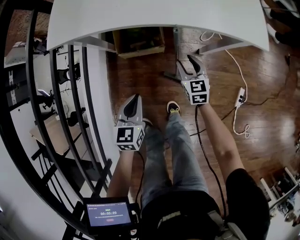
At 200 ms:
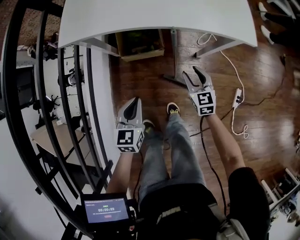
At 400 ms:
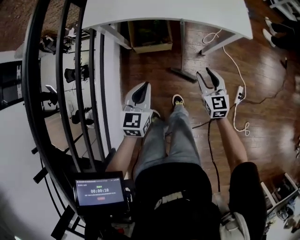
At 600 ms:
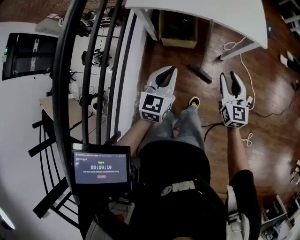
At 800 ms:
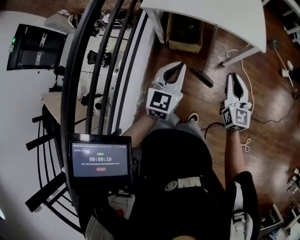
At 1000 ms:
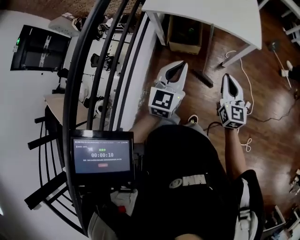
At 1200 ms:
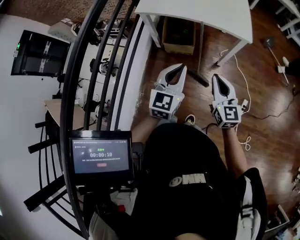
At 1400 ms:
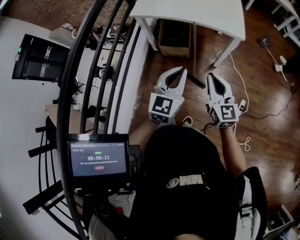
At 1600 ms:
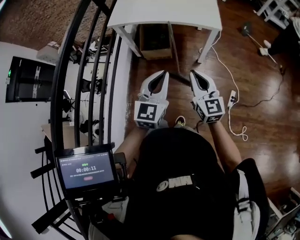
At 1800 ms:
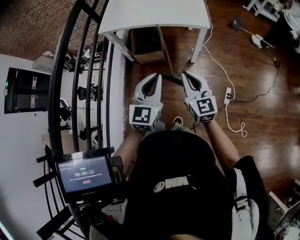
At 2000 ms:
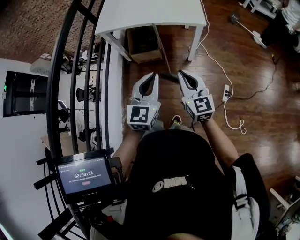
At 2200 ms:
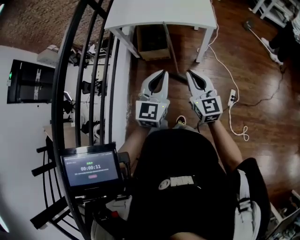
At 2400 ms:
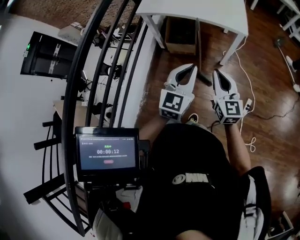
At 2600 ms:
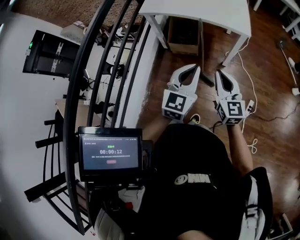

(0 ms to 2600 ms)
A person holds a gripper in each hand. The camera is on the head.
0 ms - 1200 ms: The right gripper is displaced upward and backward by about 25 cm, changes its angle by about 30 degrees, and closes up; the left gripper is displaced upward and to the right by some 20 cm, and turns by roughly 30 degrees.
1200 ms - 2600 ms: The left gripper shifts roughly 5 cm to the right.

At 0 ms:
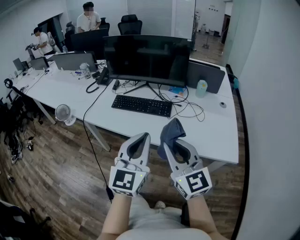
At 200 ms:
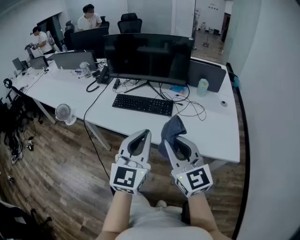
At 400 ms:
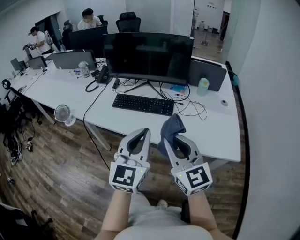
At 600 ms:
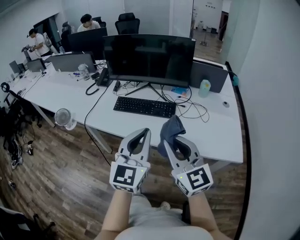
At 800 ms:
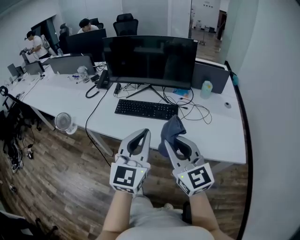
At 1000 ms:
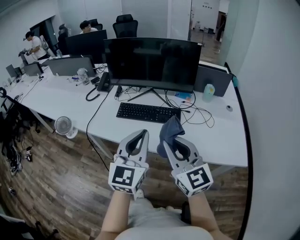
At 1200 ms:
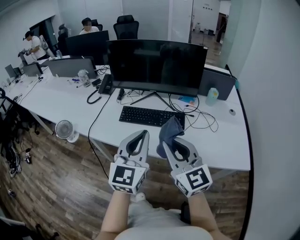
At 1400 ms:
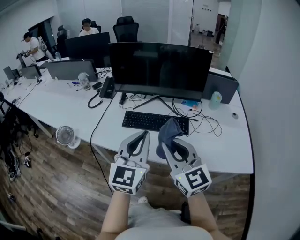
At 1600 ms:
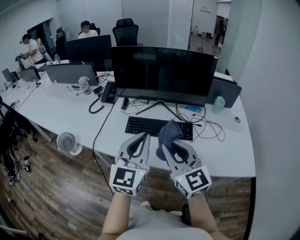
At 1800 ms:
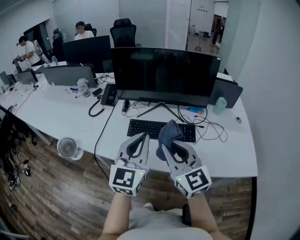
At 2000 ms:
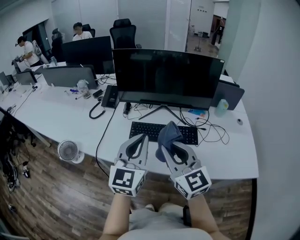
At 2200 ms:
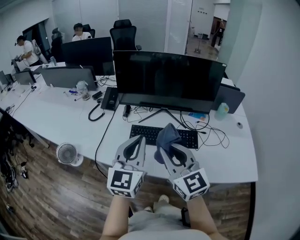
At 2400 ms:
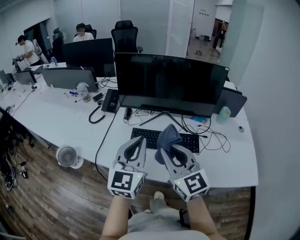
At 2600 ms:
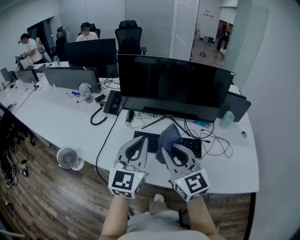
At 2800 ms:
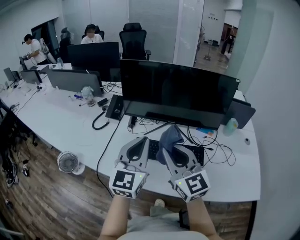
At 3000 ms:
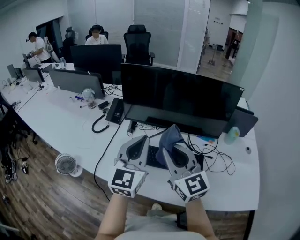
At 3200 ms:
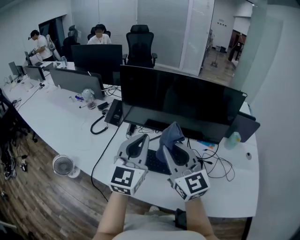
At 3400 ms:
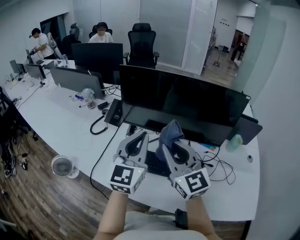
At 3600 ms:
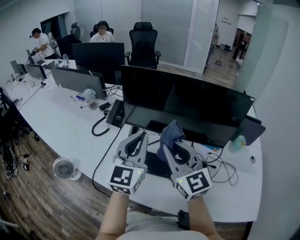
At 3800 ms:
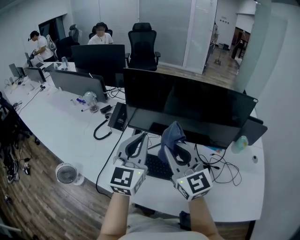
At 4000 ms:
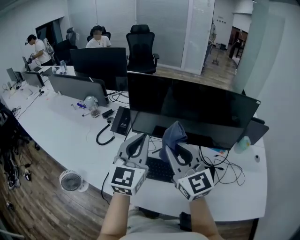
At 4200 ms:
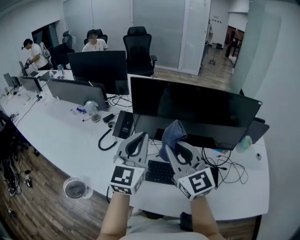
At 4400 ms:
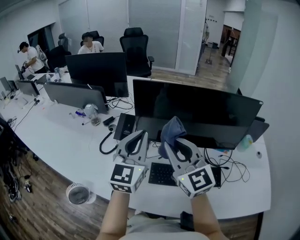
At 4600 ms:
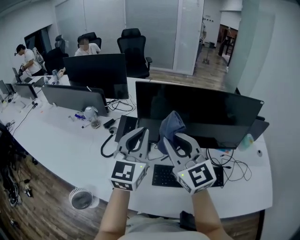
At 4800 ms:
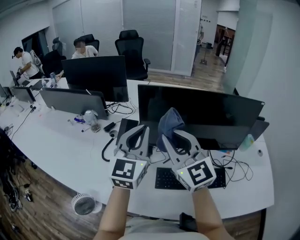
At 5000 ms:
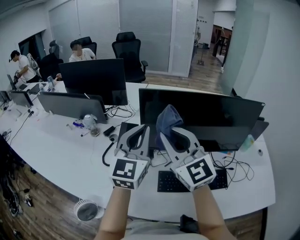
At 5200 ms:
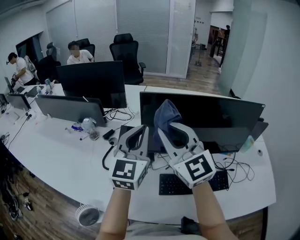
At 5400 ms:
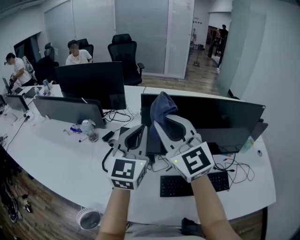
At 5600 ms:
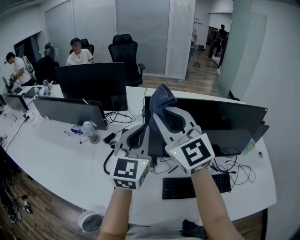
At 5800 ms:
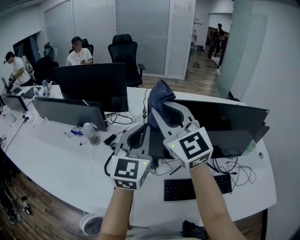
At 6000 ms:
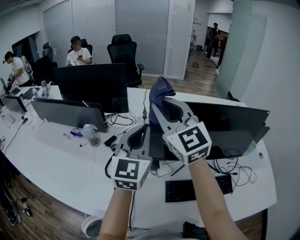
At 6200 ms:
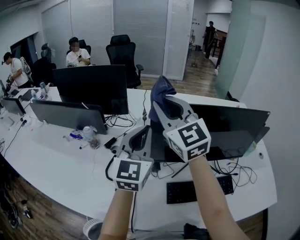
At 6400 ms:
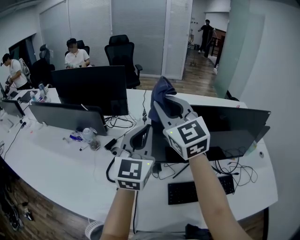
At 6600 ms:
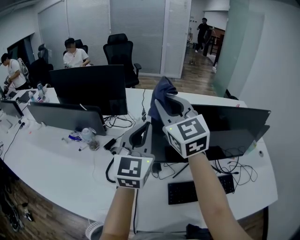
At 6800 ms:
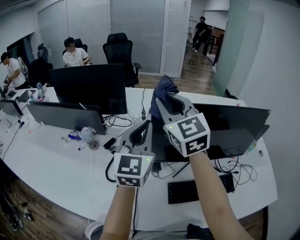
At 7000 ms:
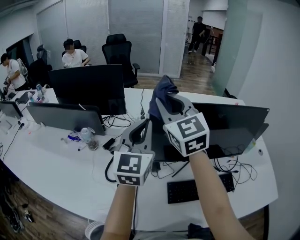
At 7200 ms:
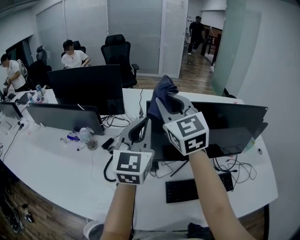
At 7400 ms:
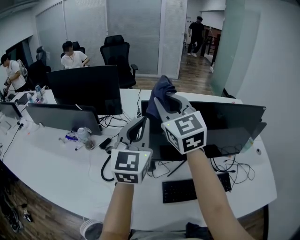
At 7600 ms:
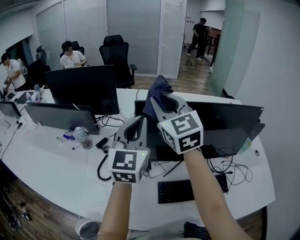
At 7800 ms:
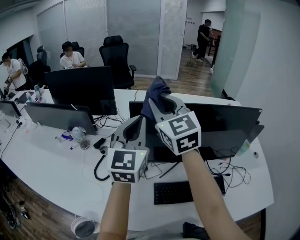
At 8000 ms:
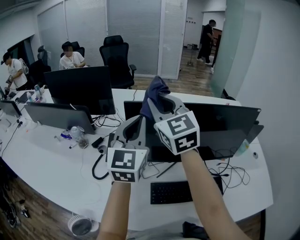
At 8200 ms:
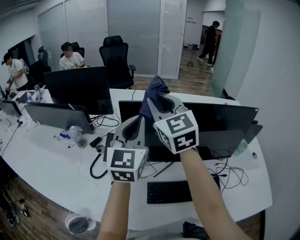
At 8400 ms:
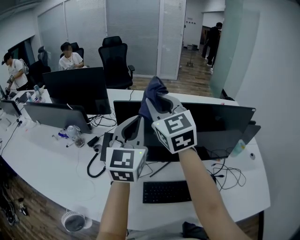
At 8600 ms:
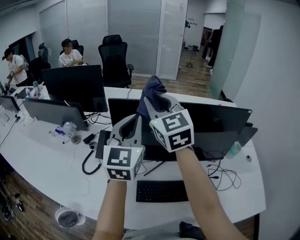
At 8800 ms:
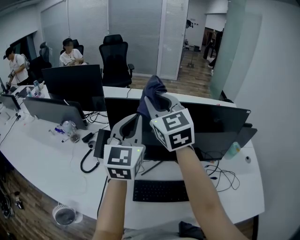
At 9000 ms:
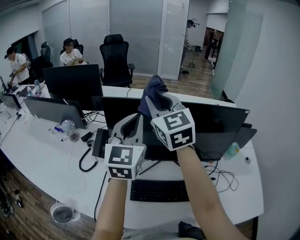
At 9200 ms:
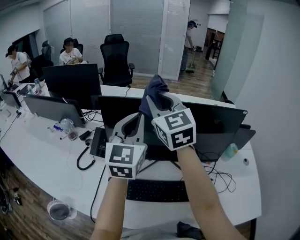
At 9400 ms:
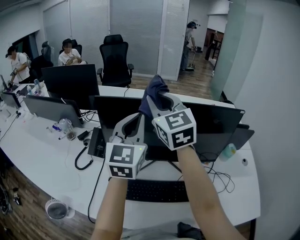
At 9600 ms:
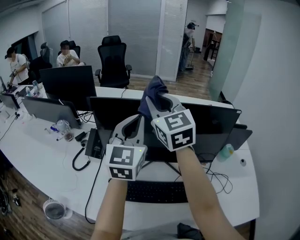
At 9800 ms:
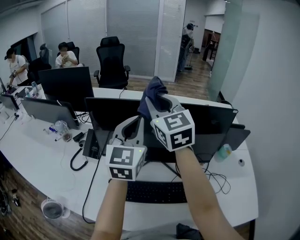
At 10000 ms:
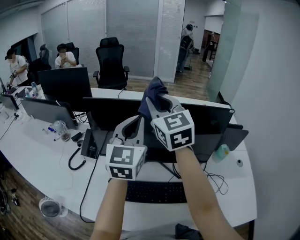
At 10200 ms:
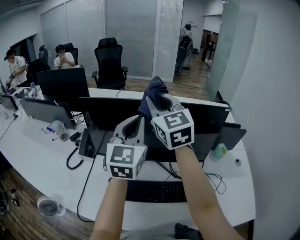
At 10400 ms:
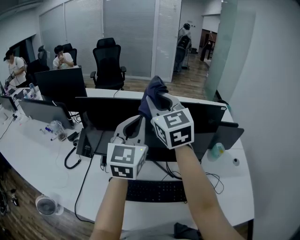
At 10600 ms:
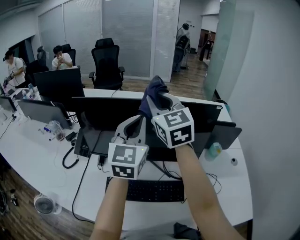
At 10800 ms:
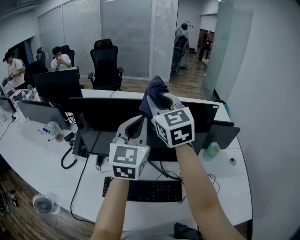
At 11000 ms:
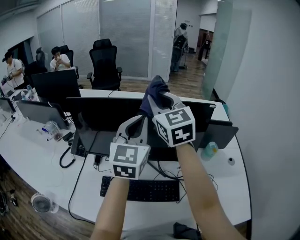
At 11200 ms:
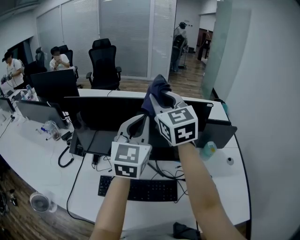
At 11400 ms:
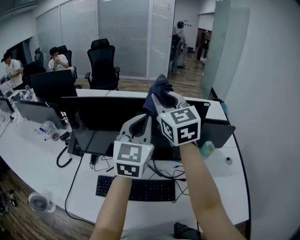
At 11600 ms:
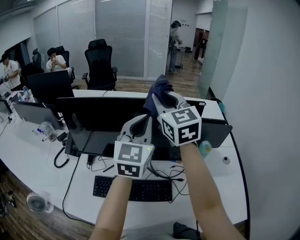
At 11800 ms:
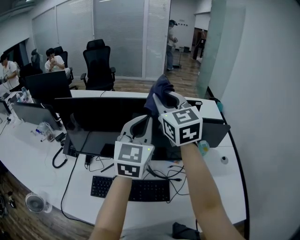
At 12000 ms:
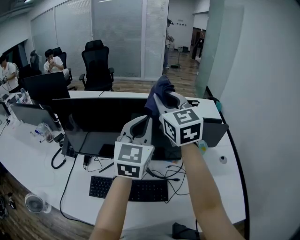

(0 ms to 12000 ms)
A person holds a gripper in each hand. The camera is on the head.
0 ms - 1600 ms: The two grippers go approximately 25 cm forward and to the left.
1600 ms - 3000 ms: The two grippers go some 15 cm forward.
3000 ms - 4400 ms: The grippers both shift forward and to the left by approximately 15 cm.
4400 ms - 6000 ms: The right gripper is displaced forward, to the left and upward by approximately 25 cm, while the left gripper shifts some 15 cm forward and to the left.
6000 ms - 7600 ms: The right gripper moves to the right, some 5 cm.
7600 ms - 9000 ms: Both grippers move to the right, approximately 10 cm.
9000 ms - 10400 ms: Both grippers move to the right, about 15 cm.
10400 ms - 12000 ms: Both grippers move to the right, about 15 cm.

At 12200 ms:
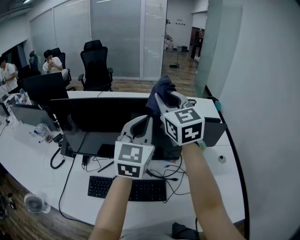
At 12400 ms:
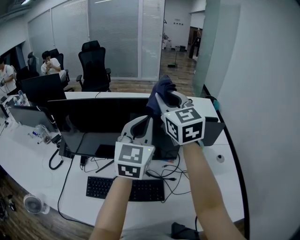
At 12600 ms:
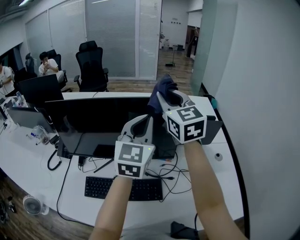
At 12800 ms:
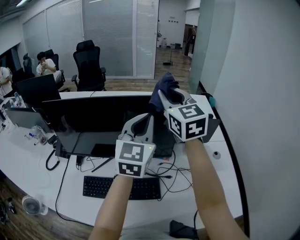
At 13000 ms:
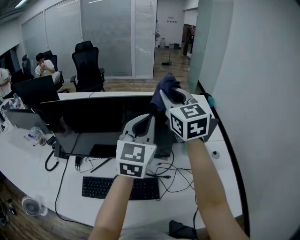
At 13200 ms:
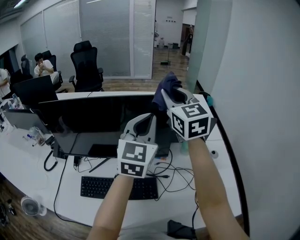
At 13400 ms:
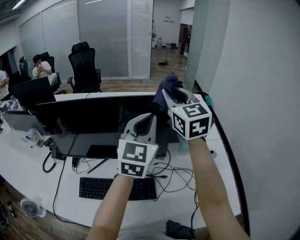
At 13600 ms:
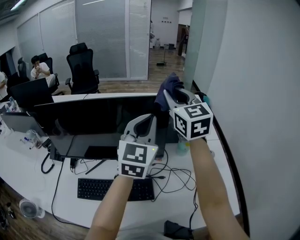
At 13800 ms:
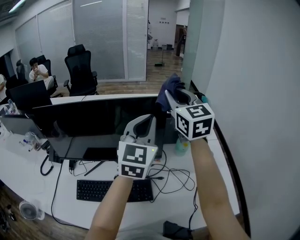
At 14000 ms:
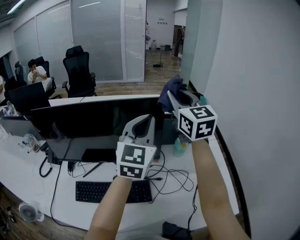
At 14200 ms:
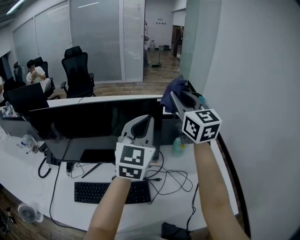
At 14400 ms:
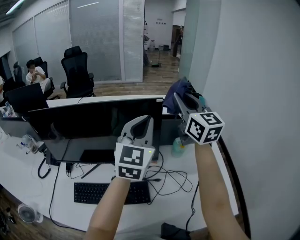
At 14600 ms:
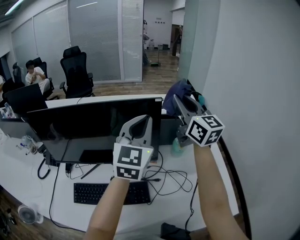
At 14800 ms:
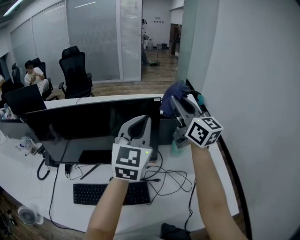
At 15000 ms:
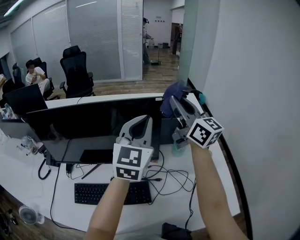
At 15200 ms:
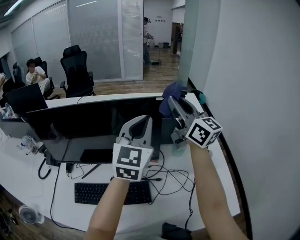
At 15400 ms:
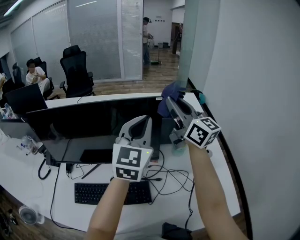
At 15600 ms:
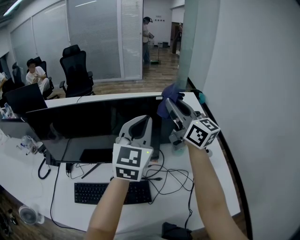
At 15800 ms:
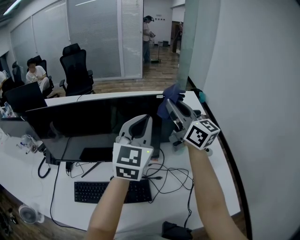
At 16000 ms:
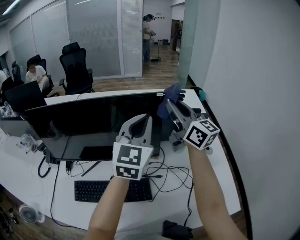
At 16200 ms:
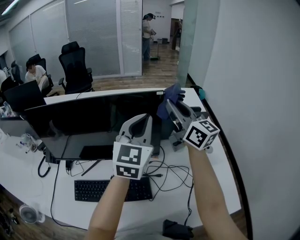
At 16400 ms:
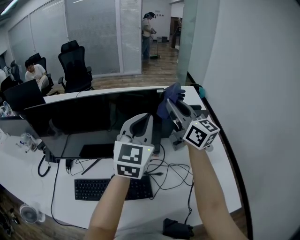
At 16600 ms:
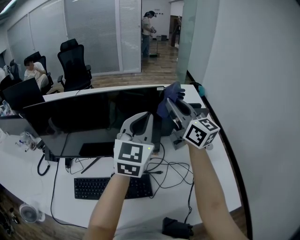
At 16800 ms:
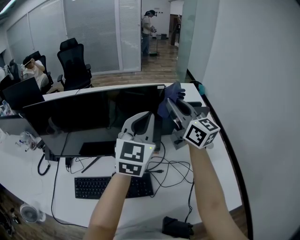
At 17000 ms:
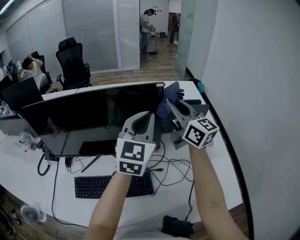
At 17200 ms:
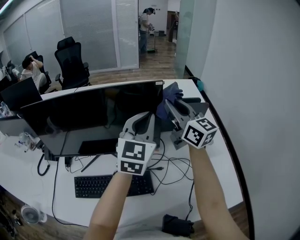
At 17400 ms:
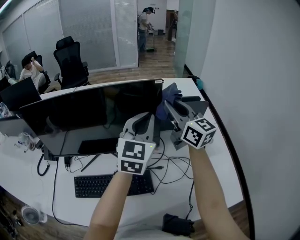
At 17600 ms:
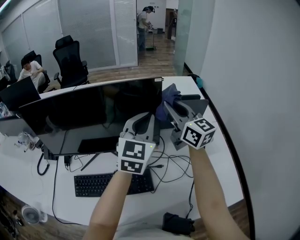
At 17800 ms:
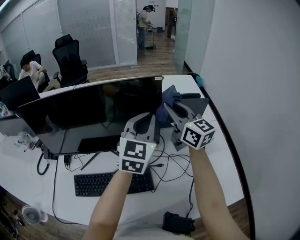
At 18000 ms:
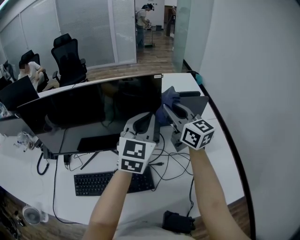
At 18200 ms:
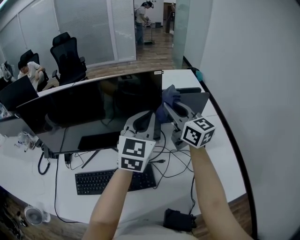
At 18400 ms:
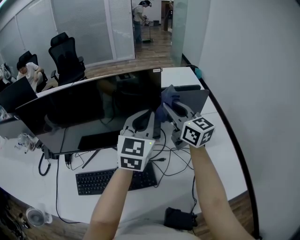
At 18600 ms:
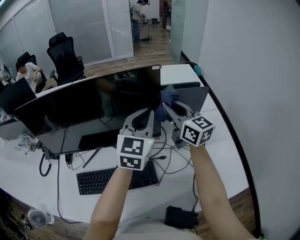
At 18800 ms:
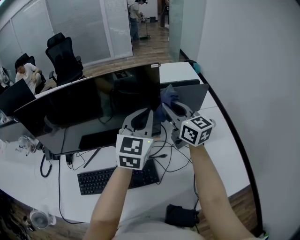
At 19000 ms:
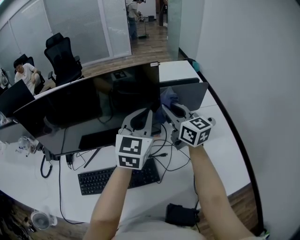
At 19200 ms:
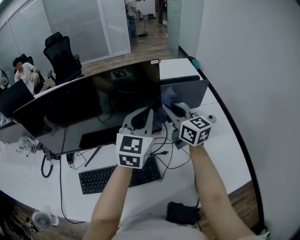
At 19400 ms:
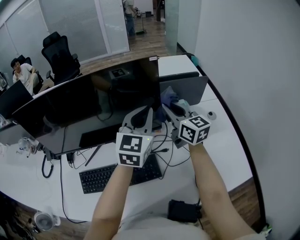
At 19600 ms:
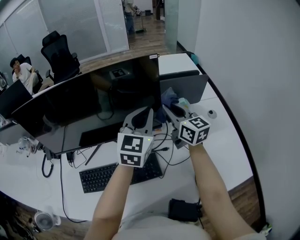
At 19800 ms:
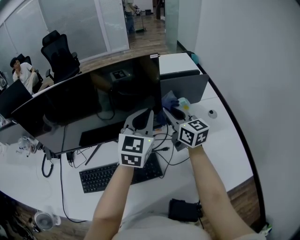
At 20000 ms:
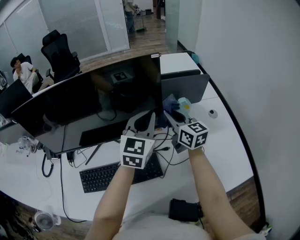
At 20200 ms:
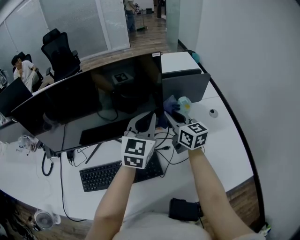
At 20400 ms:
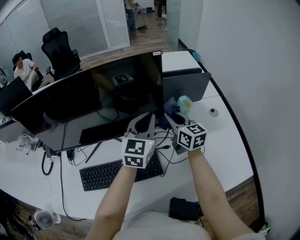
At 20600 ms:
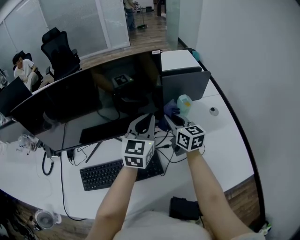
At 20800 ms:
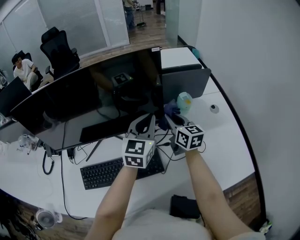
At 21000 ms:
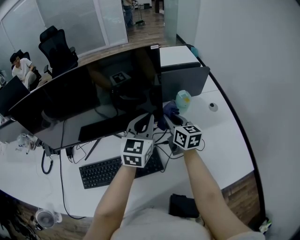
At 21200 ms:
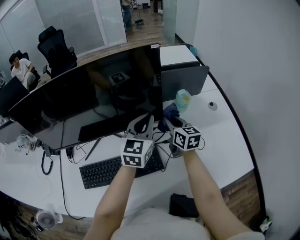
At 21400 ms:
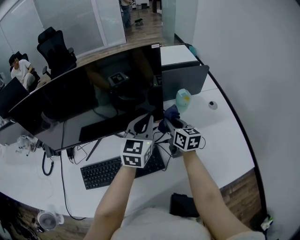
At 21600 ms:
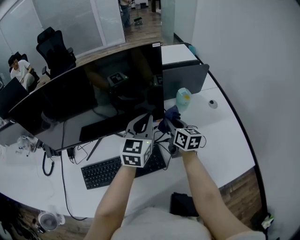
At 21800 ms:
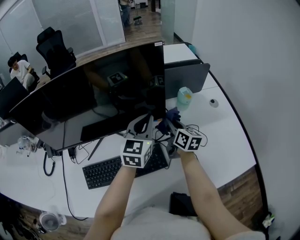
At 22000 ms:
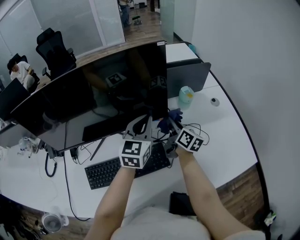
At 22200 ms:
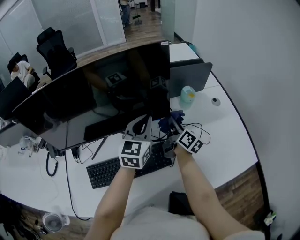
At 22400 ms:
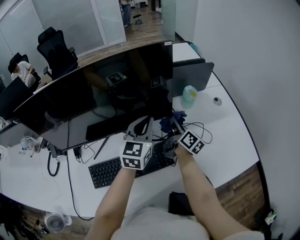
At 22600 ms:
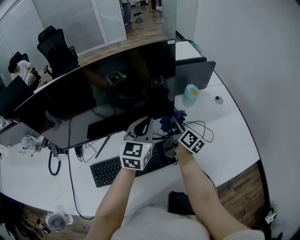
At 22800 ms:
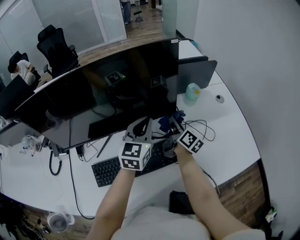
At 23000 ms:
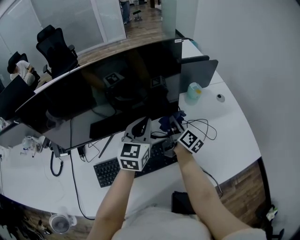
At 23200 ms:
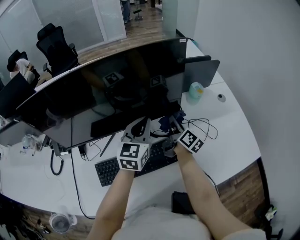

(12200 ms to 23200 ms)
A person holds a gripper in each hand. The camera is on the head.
12200 ms - 13800 ms: Both grippers move to the right, roughly 10 cm.
13800 ms - 15400 ms: The right gripper swivels roughly 30 degrees.
15400 ms - 17000 ms: The right gripper moves downward, roughly 5 cm.
17000 ms - 18400 ms: Both grippers travel together downward, approximately 5 cm.
18400 ms - 20000 ms: The left gripper moves downward, roughly 5 cm, while the right gripper goes approximately 10 cm downward.
20000 ms - 21600 ms: The left gripper shifts about 5 cm downward; the right gripper shifts some 10 cm downward.
21600 ms - 23200 ms: The right gripper ends up some 5 cm from where it was, and changes its angle by some 40 degrees. Meanwhile the left gripper shifts some 10 cm to the left.
